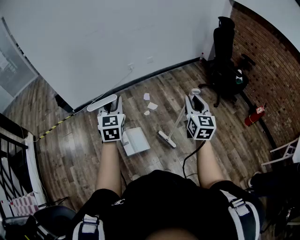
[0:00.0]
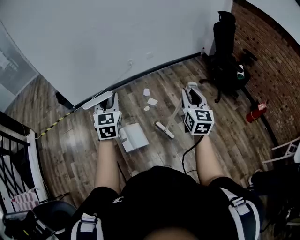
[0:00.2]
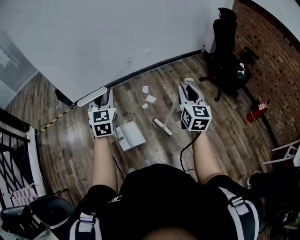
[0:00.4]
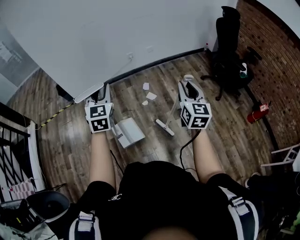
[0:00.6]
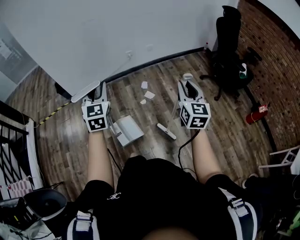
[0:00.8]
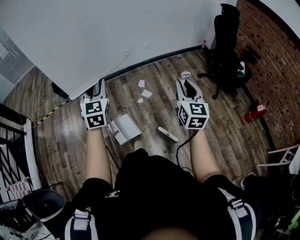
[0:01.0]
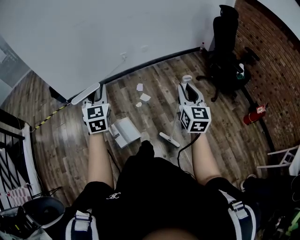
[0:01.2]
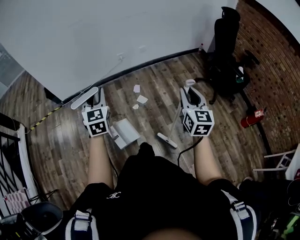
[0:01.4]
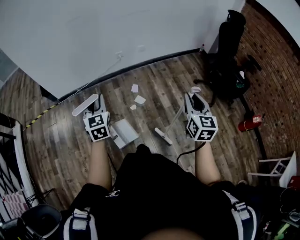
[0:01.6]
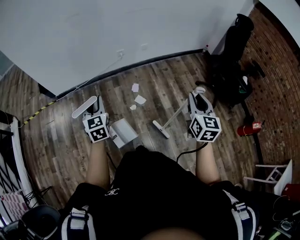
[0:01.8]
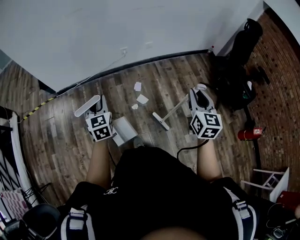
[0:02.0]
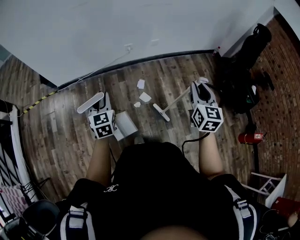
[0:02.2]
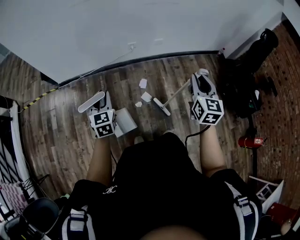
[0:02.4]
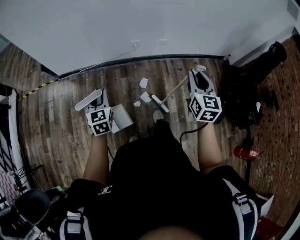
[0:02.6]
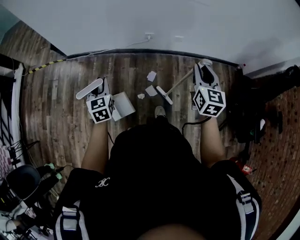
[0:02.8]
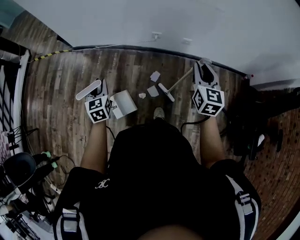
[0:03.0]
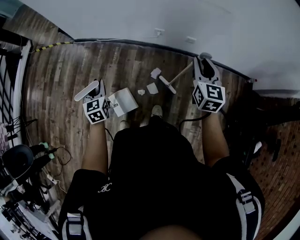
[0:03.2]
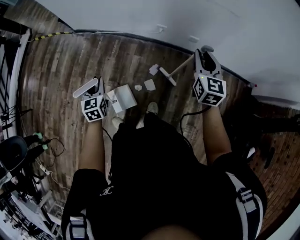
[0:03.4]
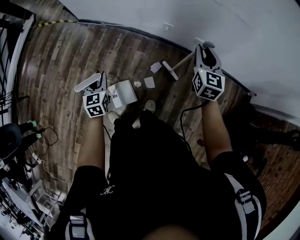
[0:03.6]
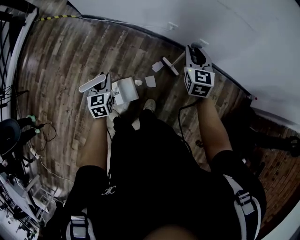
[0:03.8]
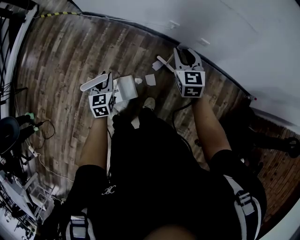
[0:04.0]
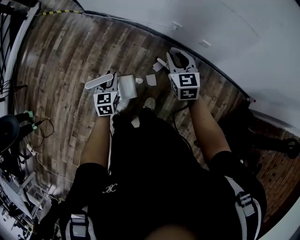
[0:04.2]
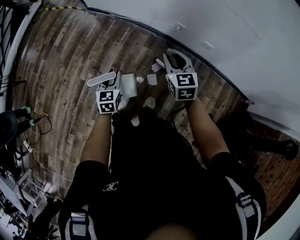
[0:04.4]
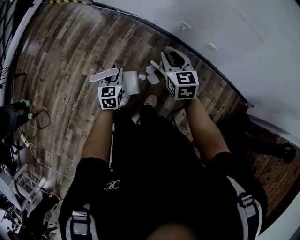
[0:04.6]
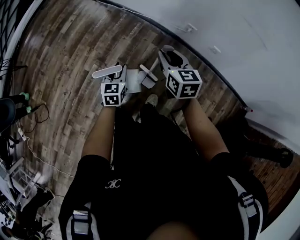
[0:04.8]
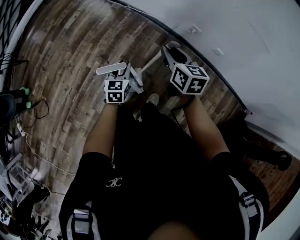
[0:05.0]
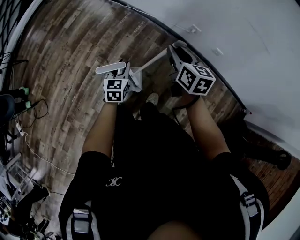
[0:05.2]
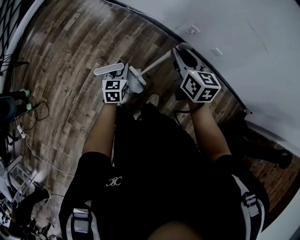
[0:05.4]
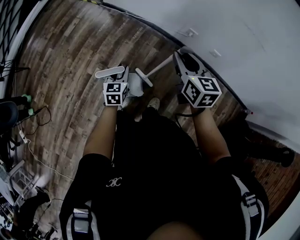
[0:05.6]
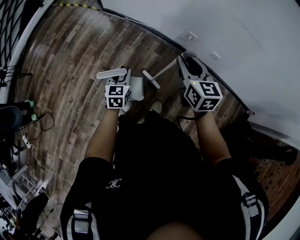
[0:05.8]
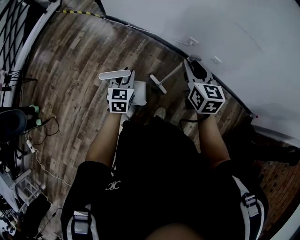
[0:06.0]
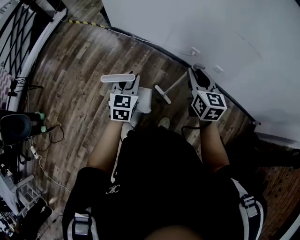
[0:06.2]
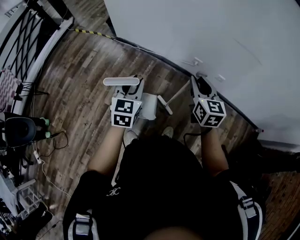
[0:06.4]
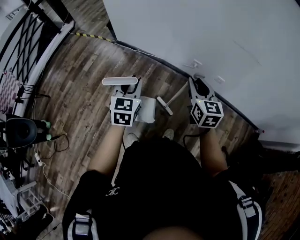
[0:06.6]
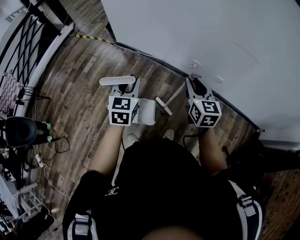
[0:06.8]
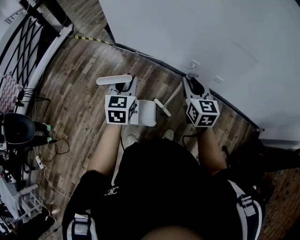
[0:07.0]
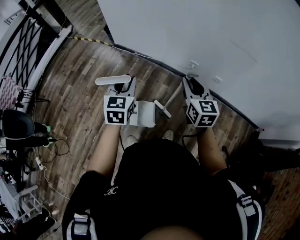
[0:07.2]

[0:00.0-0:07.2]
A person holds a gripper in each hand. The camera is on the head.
0:00.0 to 0:01.4: The right gripper shifts approximately 15 cm to the right and forward. Meanwhile the left gripper heads forward and to the right, covering approximately 15 cm.
0:01.4 to 0:02.8: The left gripper is displaced forward and downward by approximately 30 cm, and turns by approximately 30 degrees; the right gripper moves forward, roughly 50 cm.
0:02.8 to 0:04.4: The left gripper goes roughly 15 cm downward. Meanwhile the right gripper moves roughly 25 cm, and swivels approximately 40 degrees.
0:04.4 to 0:05.8: The right gripper shifts about 10 cm upward and to the left, while the left gripper changes place by about 5 cm.
0:05.8 to 0:07.2: The left gripper moves upward, roughly 20 cm.

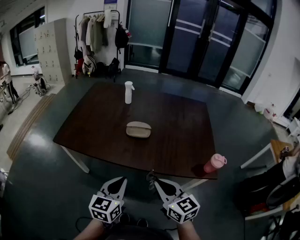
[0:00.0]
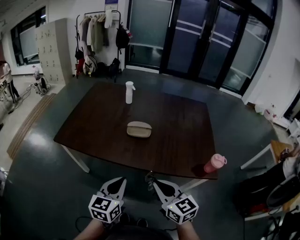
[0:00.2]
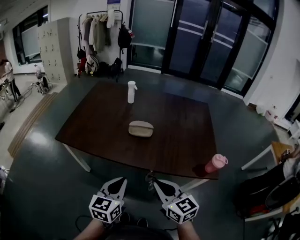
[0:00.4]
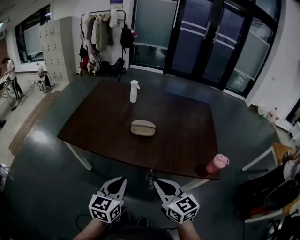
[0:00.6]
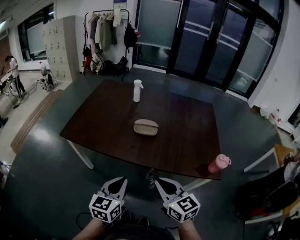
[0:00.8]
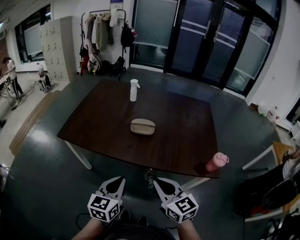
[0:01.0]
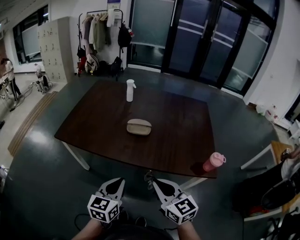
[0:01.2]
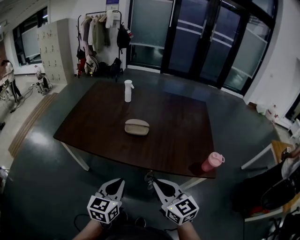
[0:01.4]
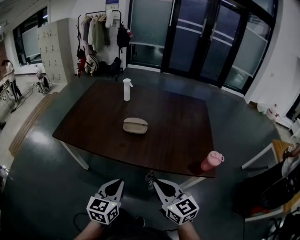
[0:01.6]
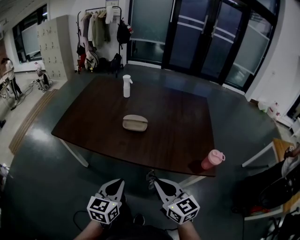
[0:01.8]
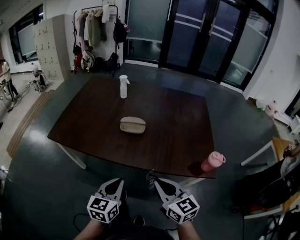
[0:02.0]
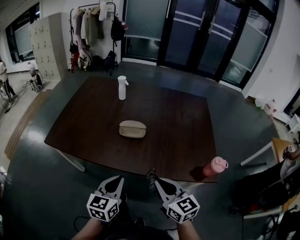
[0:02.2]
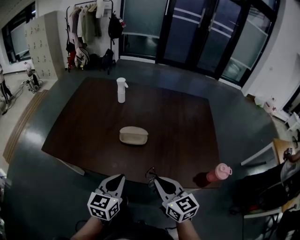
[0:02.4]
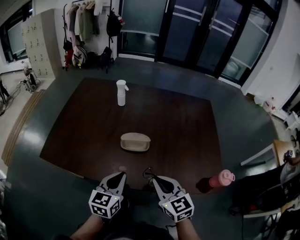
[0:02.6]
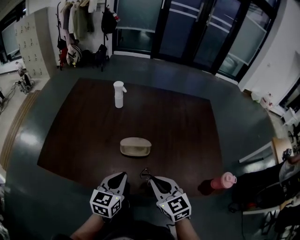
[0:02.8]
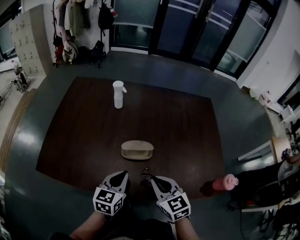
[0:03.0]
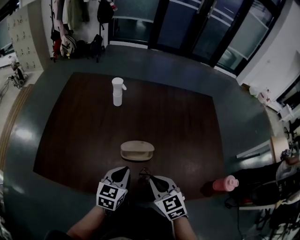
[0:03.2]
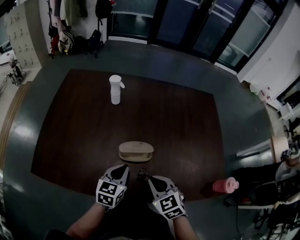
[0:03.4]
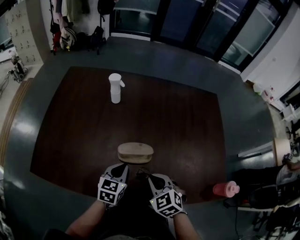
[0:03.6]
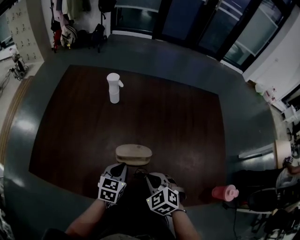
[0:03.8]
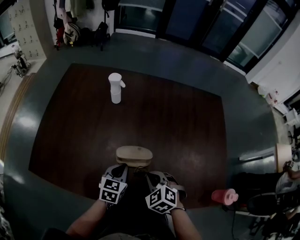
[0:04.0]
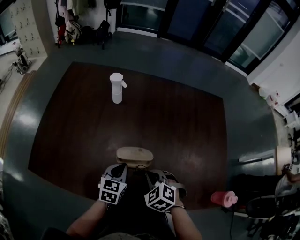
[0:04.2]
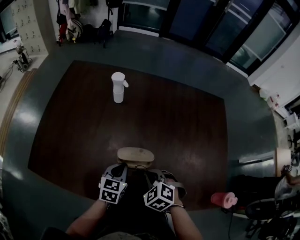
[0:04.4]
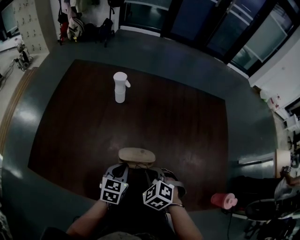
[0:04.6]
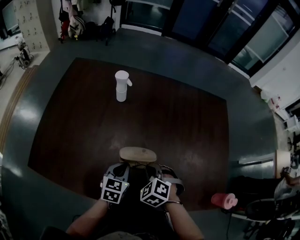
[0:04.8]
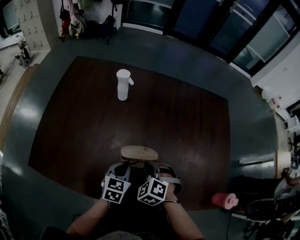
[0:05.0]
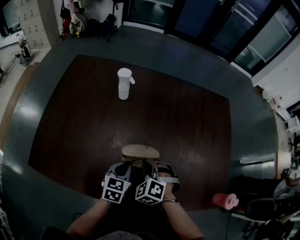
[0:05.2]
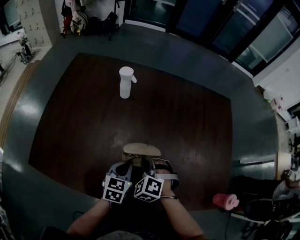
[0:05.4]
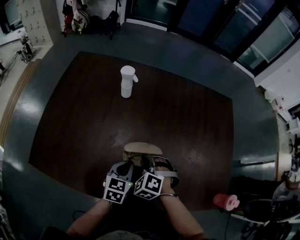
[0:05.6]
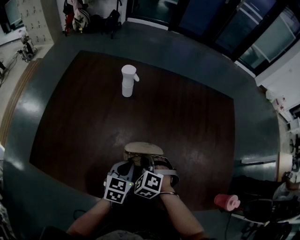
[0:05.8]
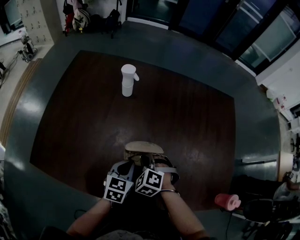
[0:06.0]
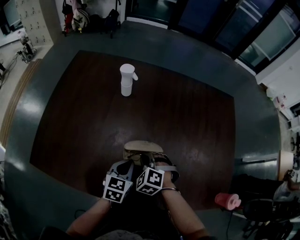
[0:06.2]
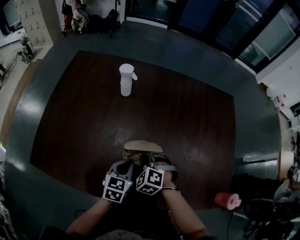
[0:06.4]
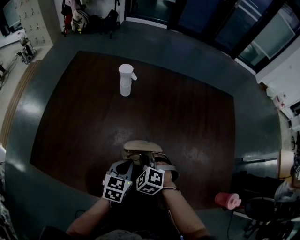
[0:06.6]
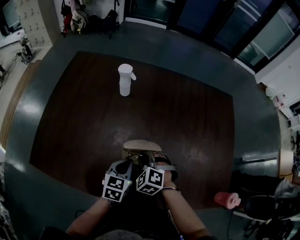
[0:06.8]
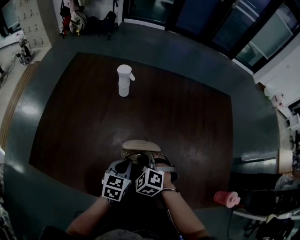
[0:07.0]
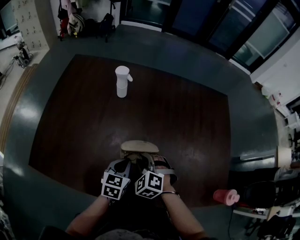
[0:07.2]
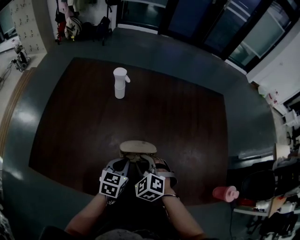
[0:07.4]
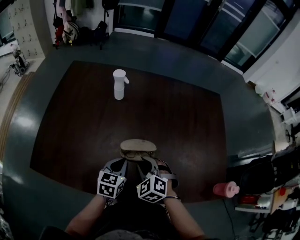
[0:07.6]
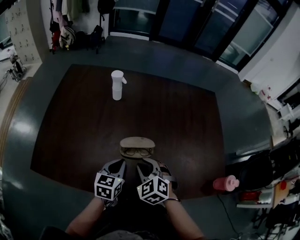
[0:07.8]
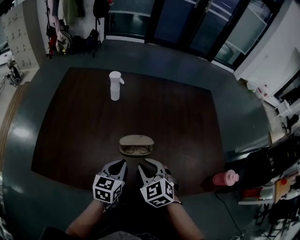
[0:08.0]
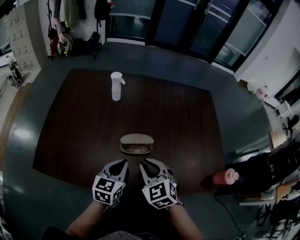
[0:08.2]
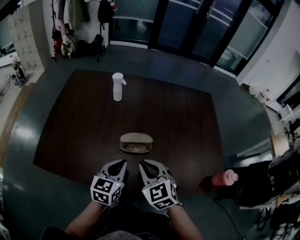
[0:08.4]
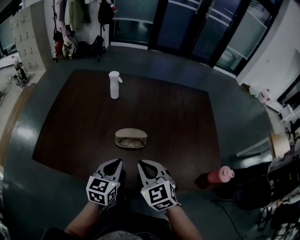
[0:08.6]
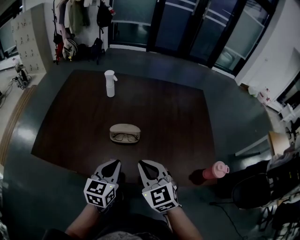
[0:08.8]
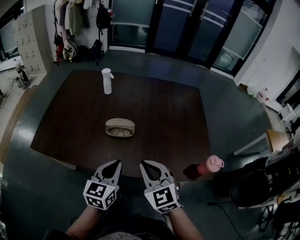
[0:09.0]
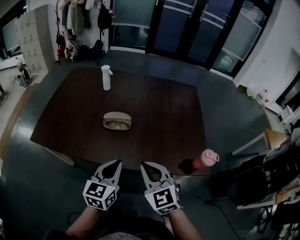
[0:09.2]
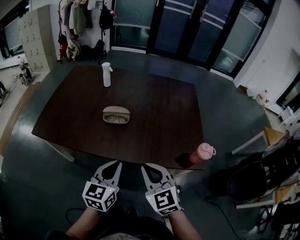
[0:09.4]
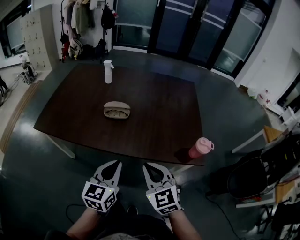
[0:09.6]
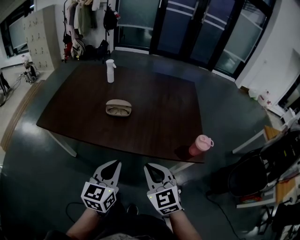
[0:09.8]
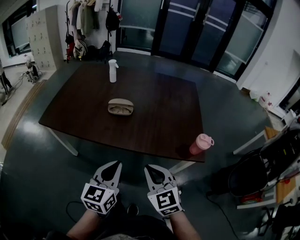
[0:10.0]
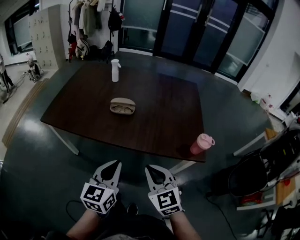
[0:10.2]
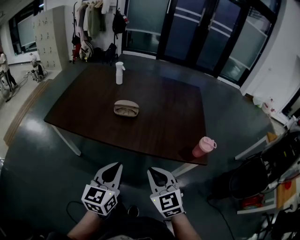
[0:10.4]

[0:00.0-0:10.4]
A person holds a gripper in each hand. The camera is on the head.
0:00.0 to 0:01.4: The grippers stay close to where they were, moving slightly.
0:01.4 to 0:03.0: Both grippers move forward, some 25 cm.
0:03.0 to 0:04.4: The left gripper goes about 15 cm forward and downward; the right gripper travels downward and forward by roughly 15 cm, and tilts its fingers roughly 30 degrees downward.
0:04.4 to 0:06.0: The right gripper goes some 10 cm to the left and forward.
0:06.0 to 0:07.4: The grippers stay close to where they were, moving slightly.
0:07.4 to 0:09.0: The right gripper goes about 30 cm backward, upward and to the right, and turns by about 40 degrees; the left gripper heads backward and upward, covering approximately 25 cm.
0:09.0 to 0:10.4: The grippers both shift backward by about 20 cm.

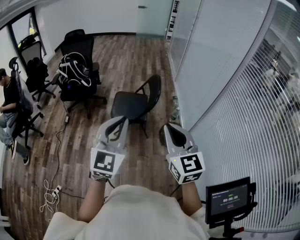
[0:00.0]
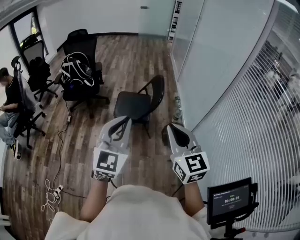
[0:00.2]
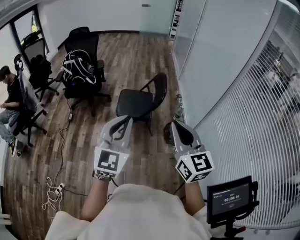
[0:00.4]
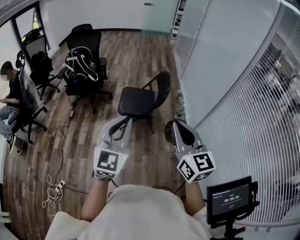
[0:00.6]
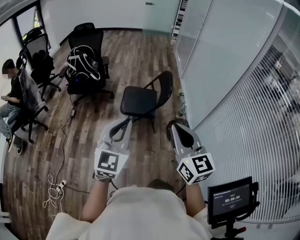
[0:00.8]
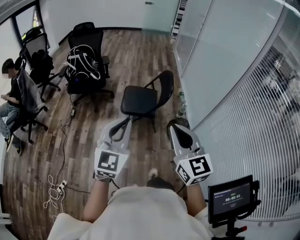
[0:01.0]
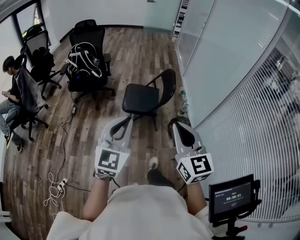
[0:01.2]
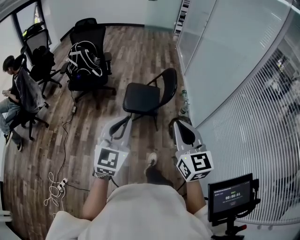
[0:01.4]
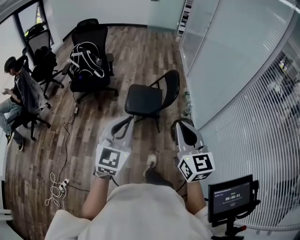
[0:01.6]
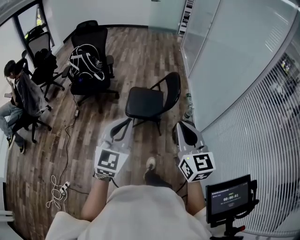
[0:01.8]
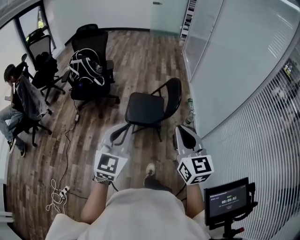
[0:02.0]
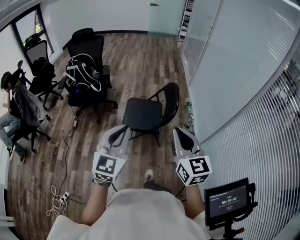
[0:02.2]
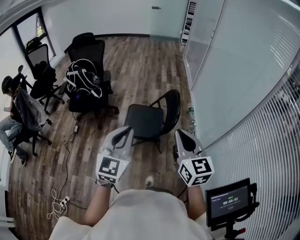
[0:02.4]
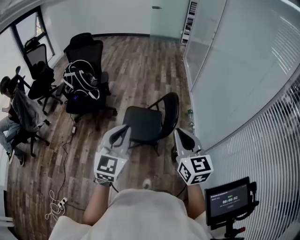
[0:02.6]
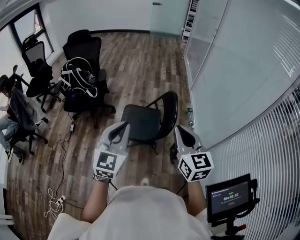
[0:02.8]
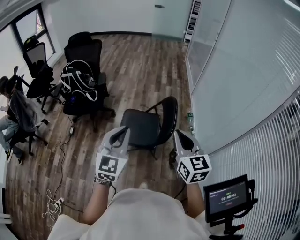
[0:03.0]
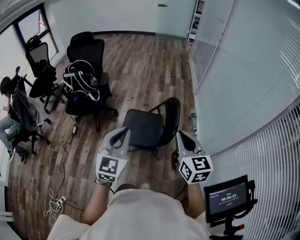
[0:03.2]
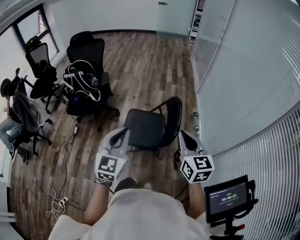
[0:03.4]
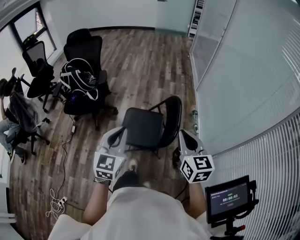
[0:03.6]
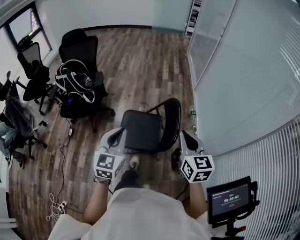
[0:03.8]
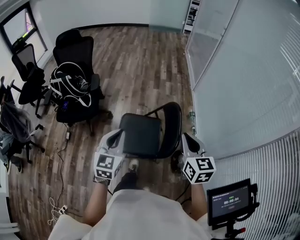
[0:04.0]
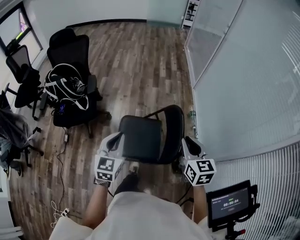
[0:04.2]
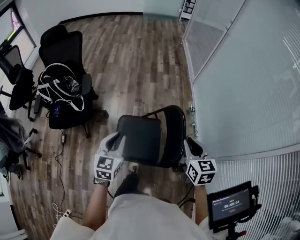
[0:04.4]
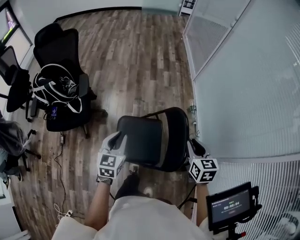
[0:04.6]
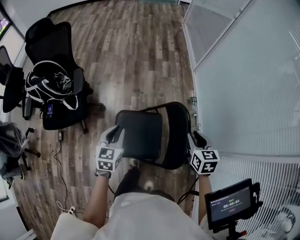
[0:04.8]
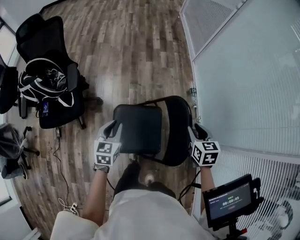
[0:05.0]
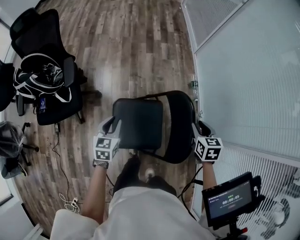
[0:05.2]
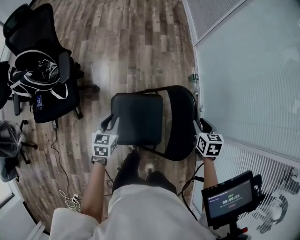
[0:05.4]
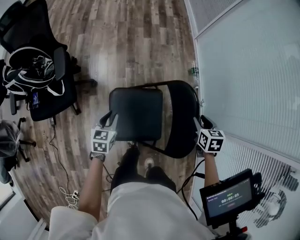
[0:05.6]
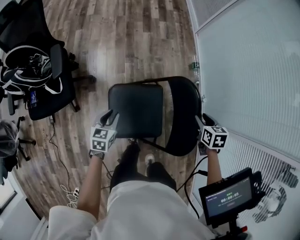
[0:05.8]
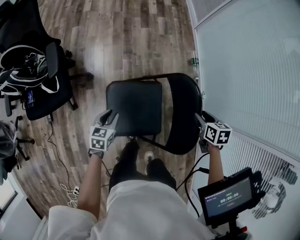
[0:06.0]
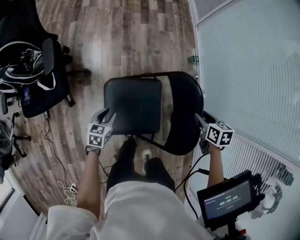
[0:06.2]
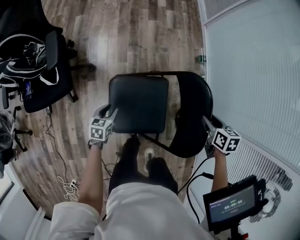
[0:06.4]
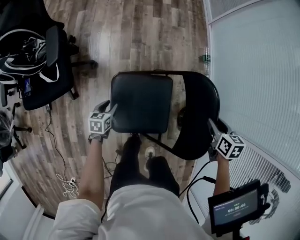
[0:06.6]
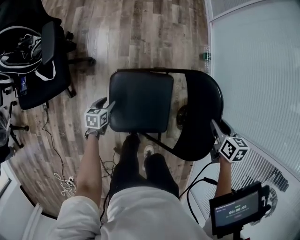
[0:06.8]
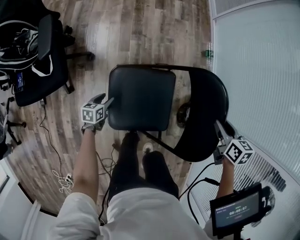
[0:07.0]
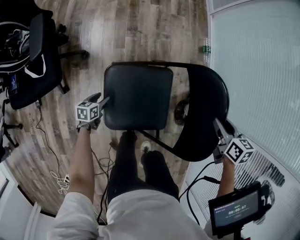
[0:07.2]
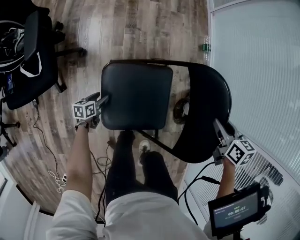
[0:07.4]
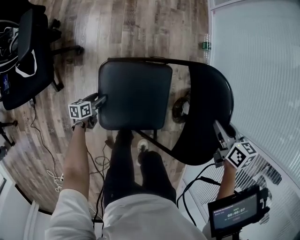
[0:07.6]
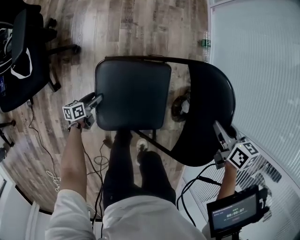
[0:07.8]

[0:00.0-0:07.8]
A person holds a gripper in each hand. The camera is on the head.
0:00.0 to 0:01.6: Both grippers travel together to the left, about 5 cm.
0:01.6 to 0:03.2: Both grippers move forward, some 25 cm.
0:03.2 to 0:04.6: The two grippers go some 30 cm forward and downward. The right gripper swivels approximately 30 degrees, while the left gripper changes its angle by roughly 20 degrees.
0:04.6 to 0:06.2: The left gripper goes about 25 cm downward, and rotates about 30 degrees; the right gripper heads downward, covering approximately 15 cm, swivels about 30 degrees, and opens up.
0:06.2 to 0:07.8: The left gripper heads downward, covering roughly 20 cm, rotates about 40 degrees, and opens.
